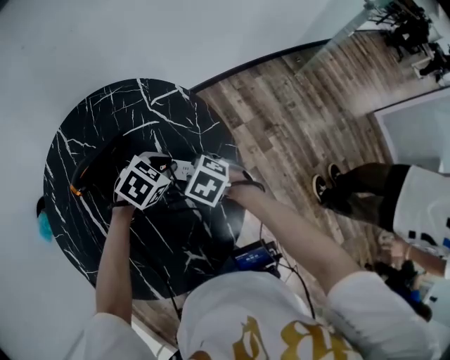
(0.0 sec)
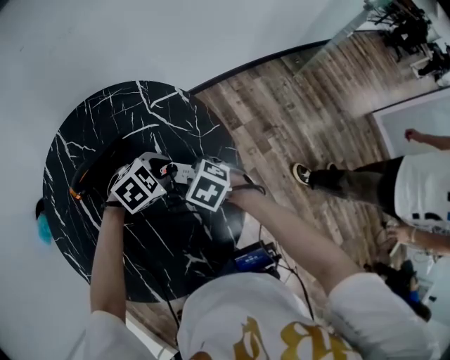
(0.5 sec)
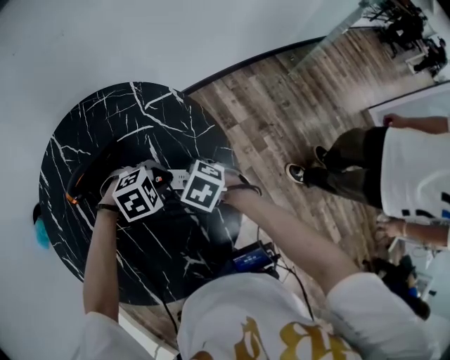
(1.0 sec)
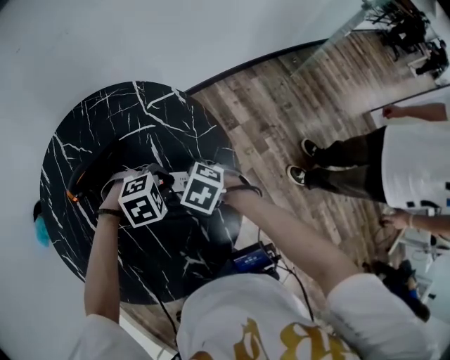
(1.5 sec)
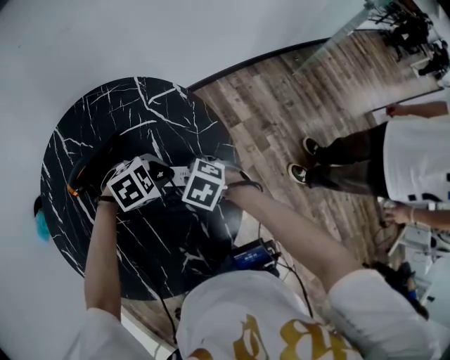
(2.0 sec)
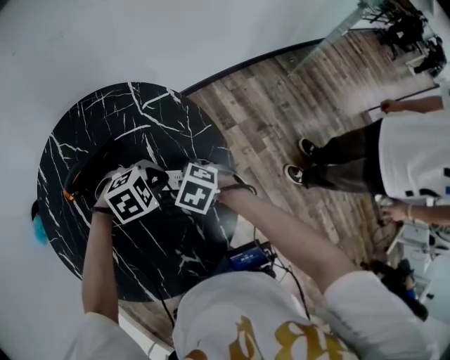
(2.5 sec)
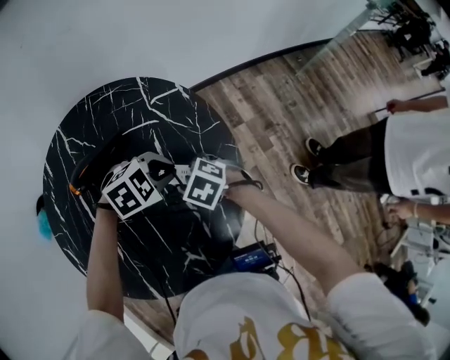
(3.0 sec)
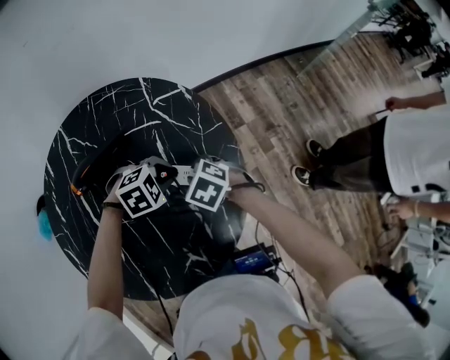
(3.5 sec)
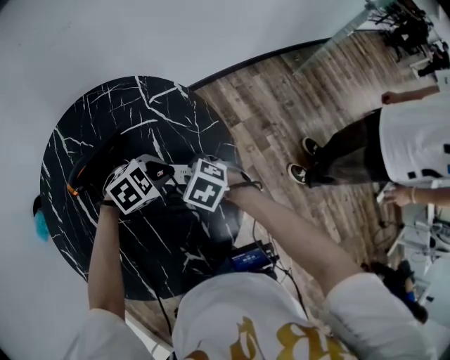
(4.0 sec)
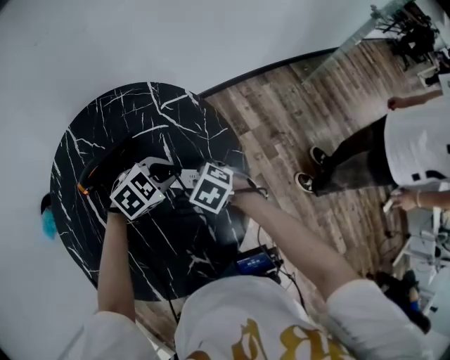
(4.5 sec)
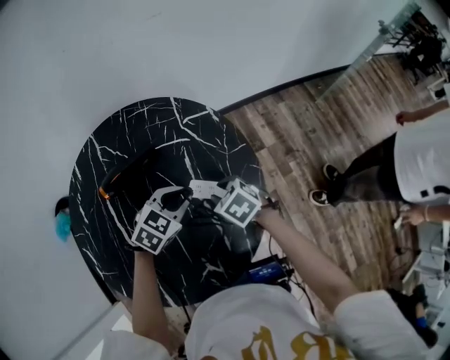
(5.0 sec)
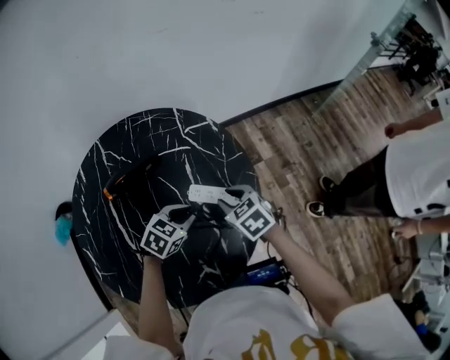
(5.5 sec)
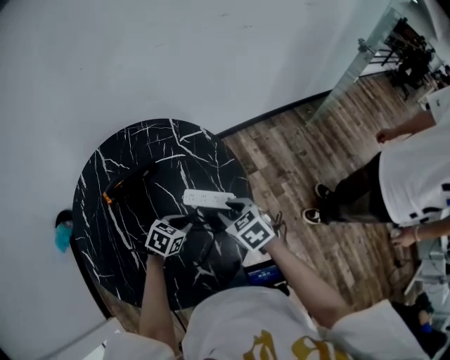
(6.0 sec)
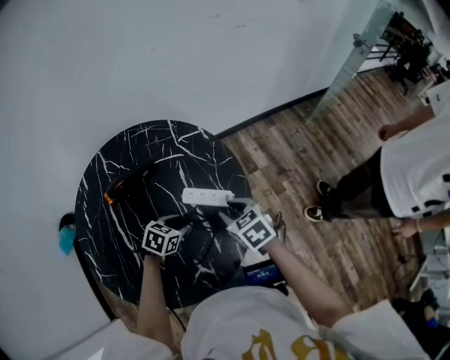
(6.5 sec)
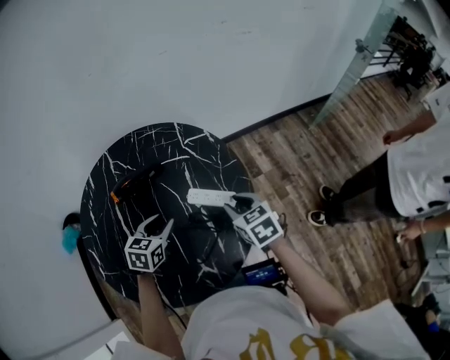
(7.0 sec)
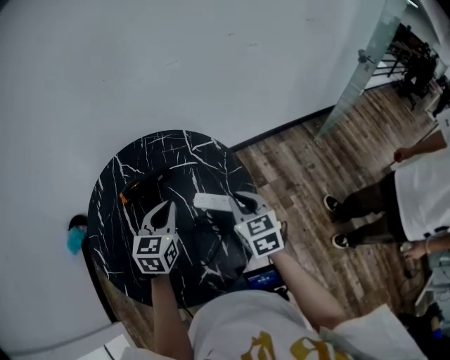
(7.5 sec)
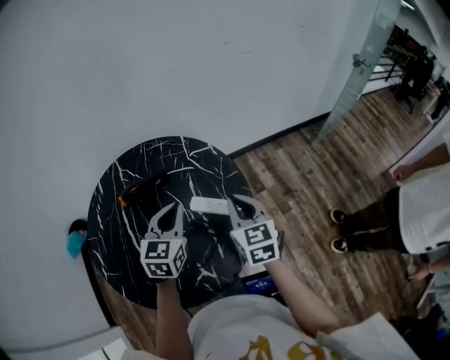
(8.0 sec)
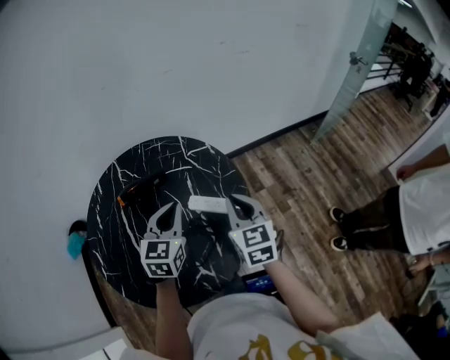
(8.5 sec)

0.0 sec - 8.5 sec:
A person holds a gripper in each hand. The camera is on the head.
0.0 sec - 2.0 sec: The left gripper turns by about 20 degrees.
2.0 sec - 4.0 sec: The grippers move only a little.
4.0 sec - 6.5 sec: The left gripper reaches some 5 cm upward, then returns, swivels about 40 degrees, and opens; the right gripper ends up some 10 cm from where it was, and changes its angle by some 30 degrees.
6.5 sec - 8.5 sec: The left gripper goes about 25 cm upward, angles its fingers upward, by roughly 30 degrees, and closes its fingers. Meanwhile the right gripper is displaced upward by roughly 15 cm, changes its angle by roughly 30 degrees, and closes.

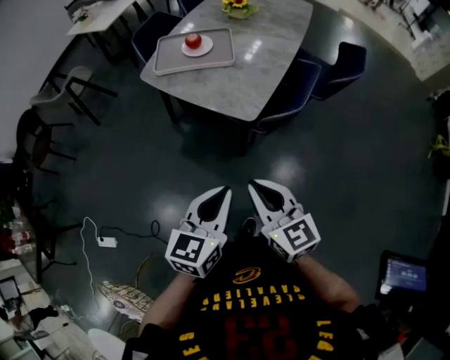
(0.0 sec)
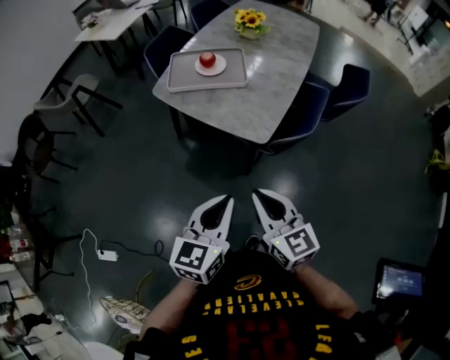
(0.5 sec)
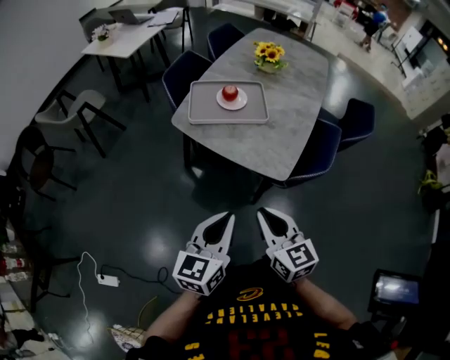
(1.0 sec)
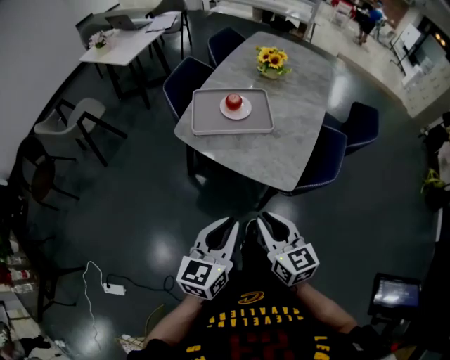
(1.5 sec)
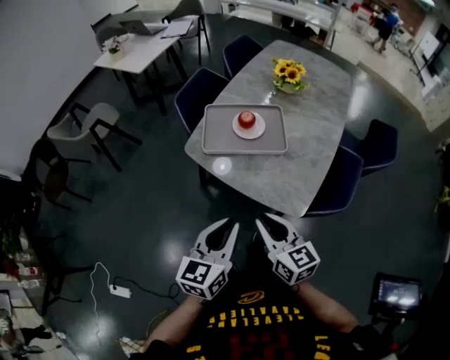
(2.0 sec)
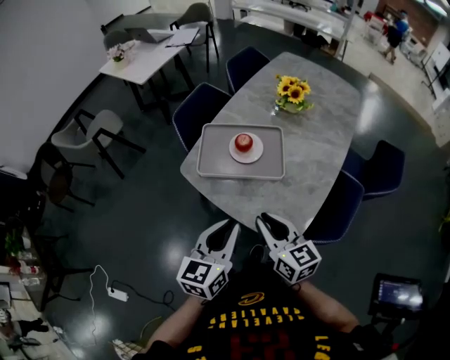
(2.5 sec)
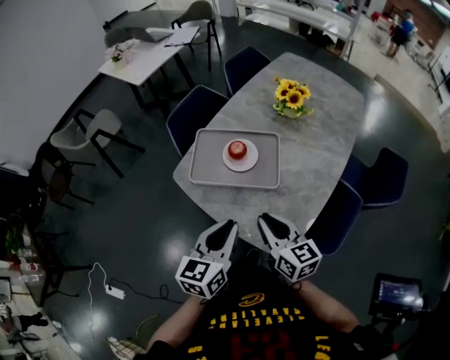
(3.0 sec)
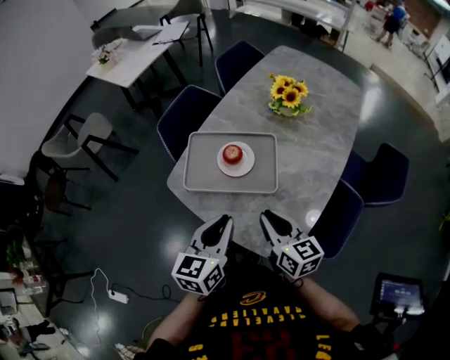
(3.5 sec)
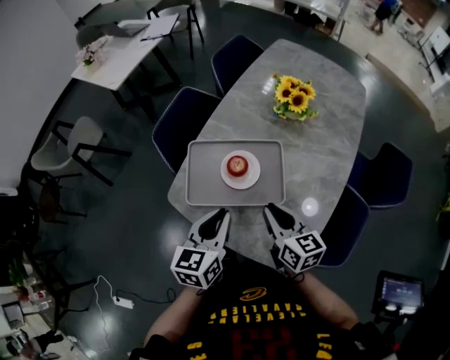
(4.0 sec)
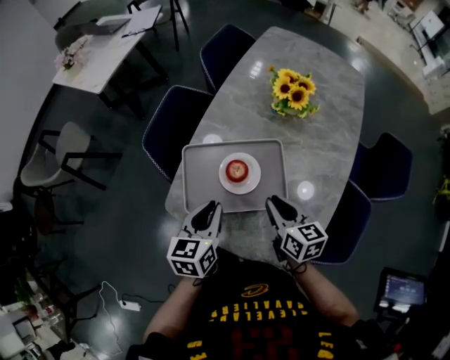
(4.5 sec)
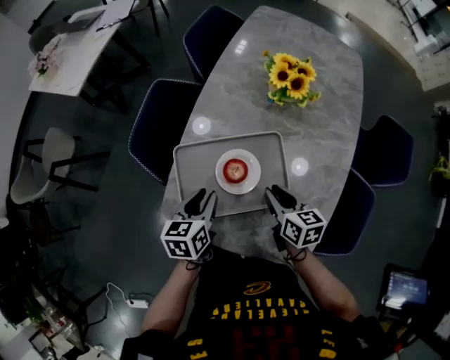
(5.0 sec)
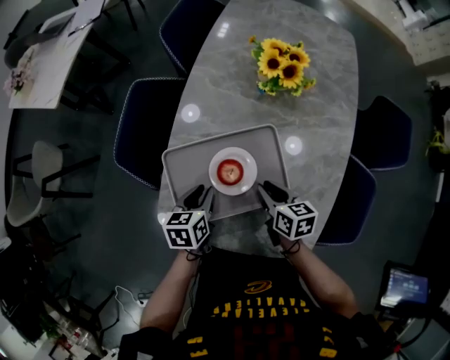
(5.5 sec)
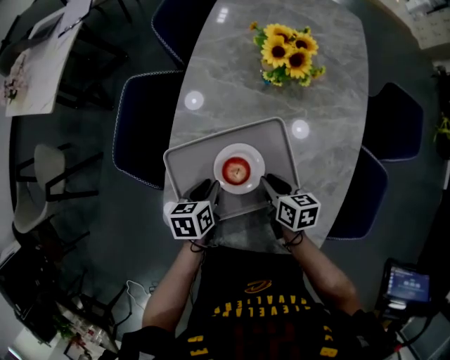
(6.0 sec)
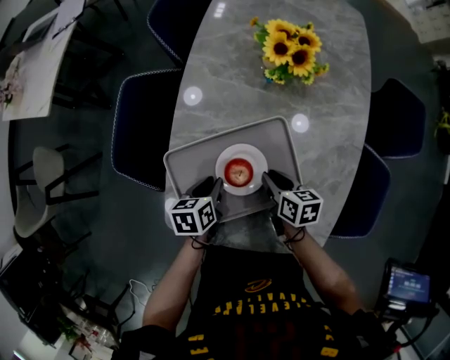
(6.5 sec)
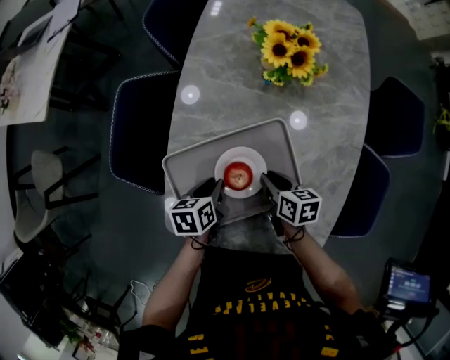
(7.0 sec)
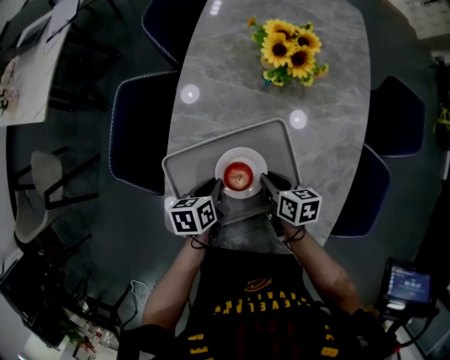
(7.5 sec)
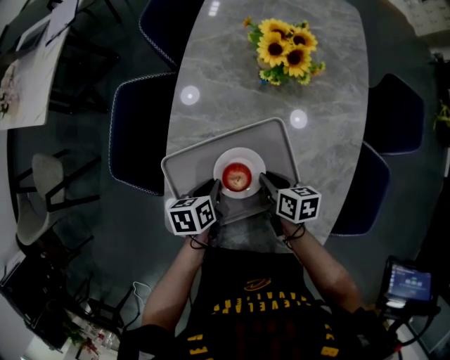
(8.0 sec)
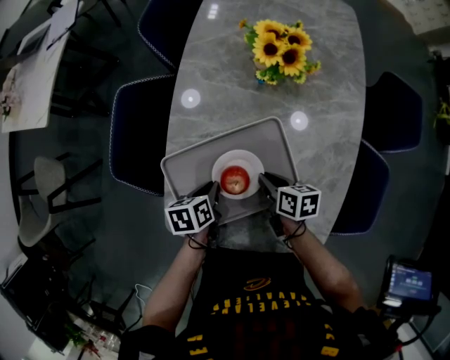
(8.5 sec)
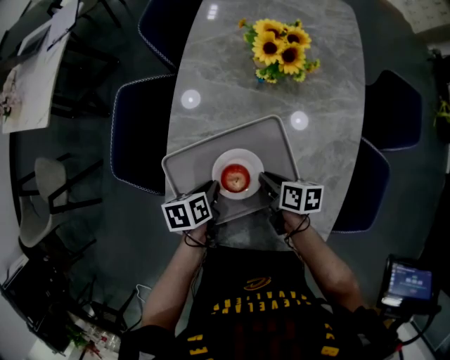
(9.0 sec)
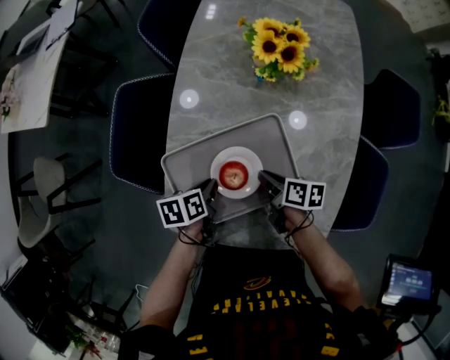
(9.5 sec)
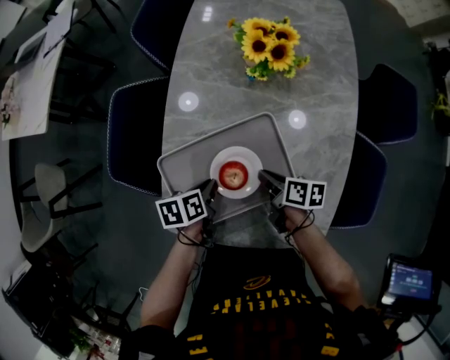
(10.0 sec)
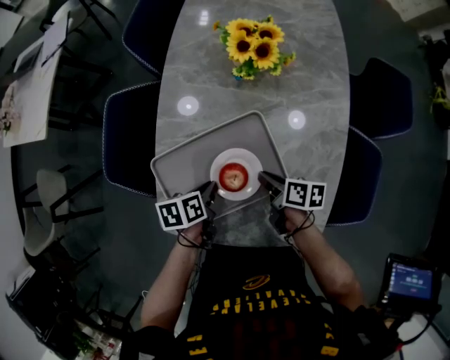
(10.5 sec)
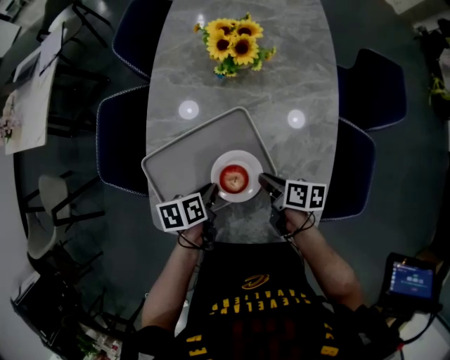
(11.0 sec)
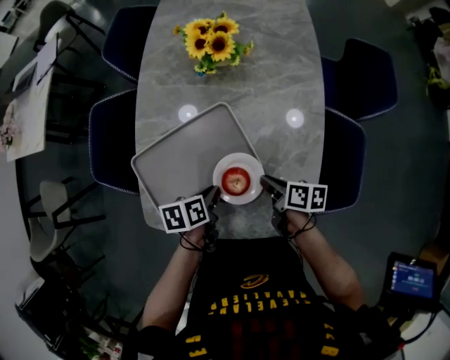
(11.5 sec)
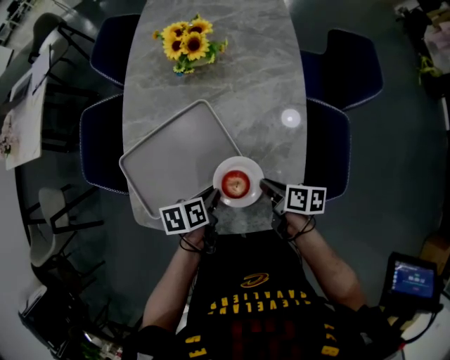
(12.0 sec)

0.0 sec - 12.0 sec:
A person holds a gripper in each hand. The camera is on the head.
0.0 sec - 2.0 sec: The grippers both shift forward and to the left by roughly 30 cm.
2.0 sec - 4.0 sec: The two grippers go about 30 cm forward.
4.0 sec - 6.0 sec: The two grippers go roughly 25 cm downward and forward. The left gripper rotates roughly 40 degrees. Meanwhile the right gripper changes its angle by about 30 degrees.
6.0 sec - 8.0 sec: The grippers stay close to where they were, moving slightly.
8.0 sec - 10.0 sec: The grippers move only a little.
10.0 sec - 12.0 sec: The grippers both shift to the right and backward by roughly 20 cm.

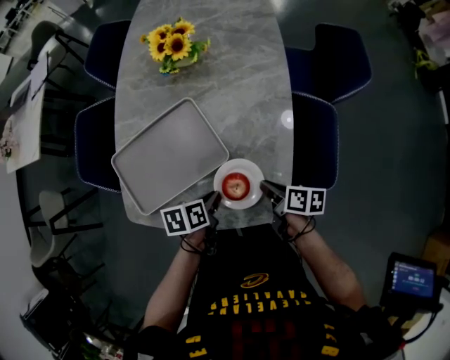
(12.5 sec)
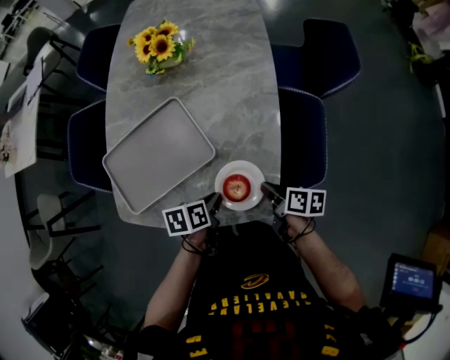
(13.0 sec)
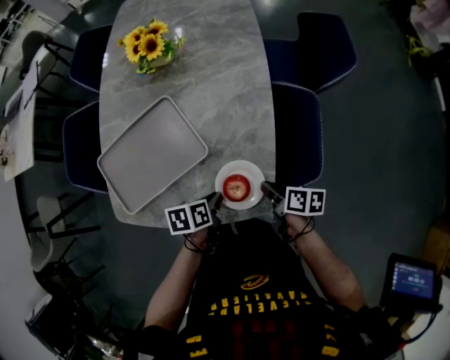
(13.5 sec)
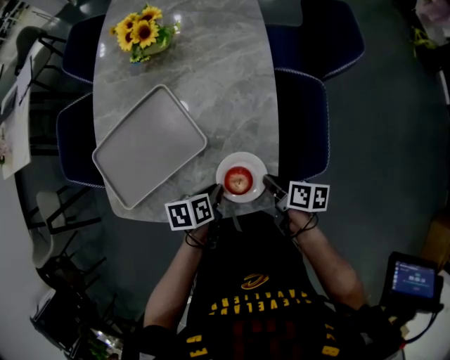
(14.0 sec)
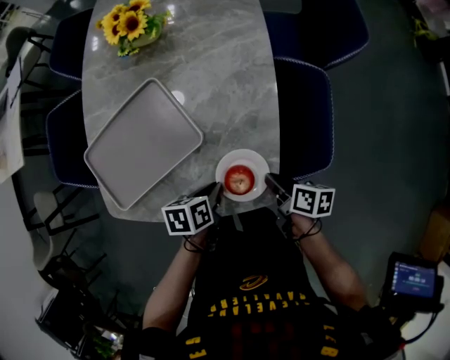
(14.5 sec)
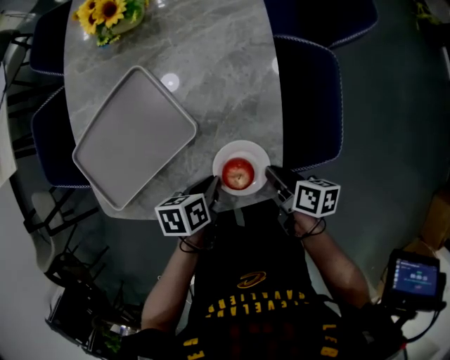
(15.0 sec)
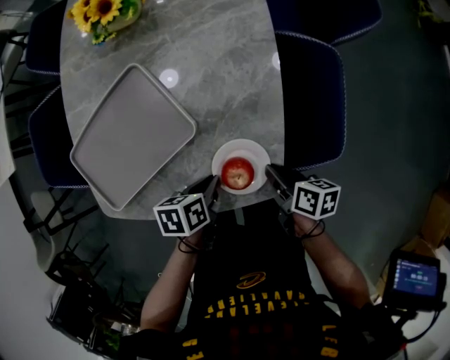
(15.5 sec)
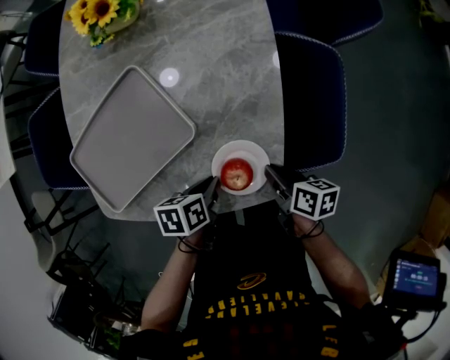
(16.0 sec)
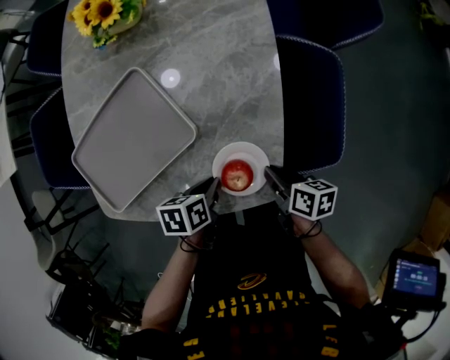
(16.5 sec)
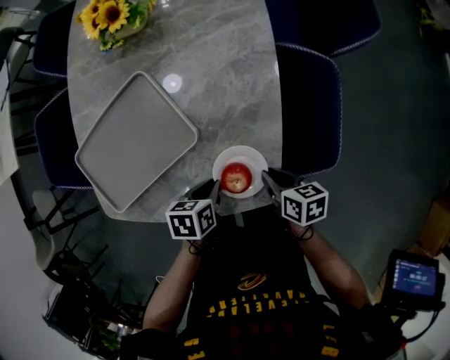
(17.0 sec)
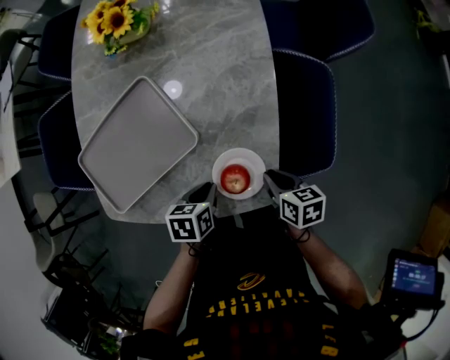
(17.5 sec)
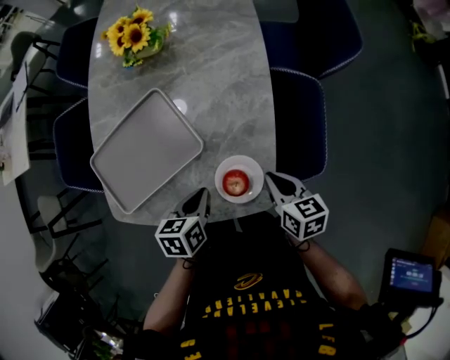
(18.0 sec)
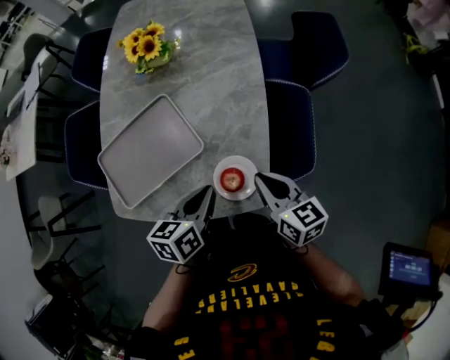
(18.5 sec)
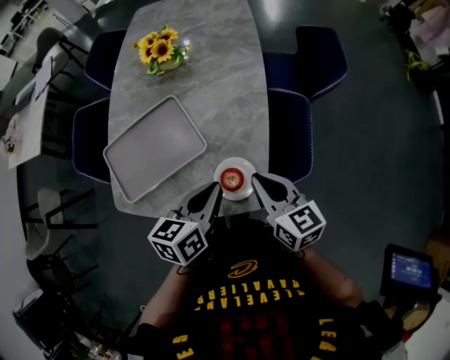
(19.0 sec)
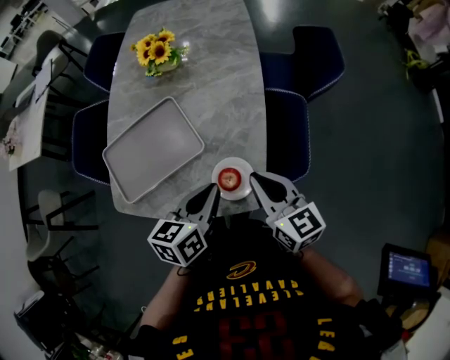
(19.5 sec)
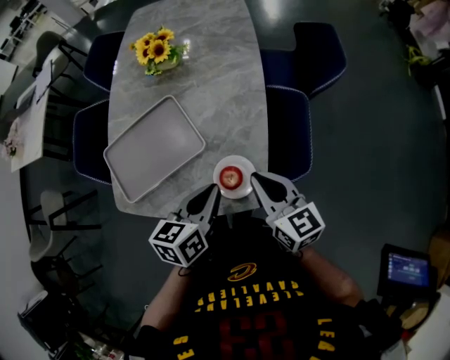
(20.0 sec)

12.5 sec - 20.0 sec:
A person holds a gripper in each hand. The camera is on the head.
12.5 sec - 14.5 sec: The two grippers go approximately 5 cm to the right.
14.5 sec - 16.5 sec: There are only small adjustments of the grippers.
16.5 sec - 18.0 sec: The two grippers go some 10 cm upward. The right gripper swivels some 30 degrees, while the left gripper swivels approximately 20 degrees.
18.0 sec - 20.0 sec: The two grippers go some 15 cm upward. The left gripper rotates roughly 20 degrees, while the right gripper rotates about 30 degrees.
